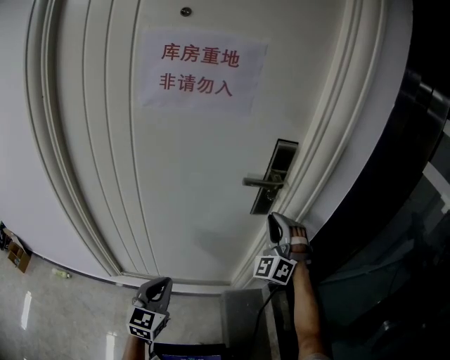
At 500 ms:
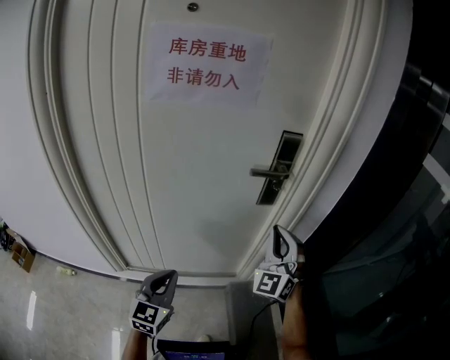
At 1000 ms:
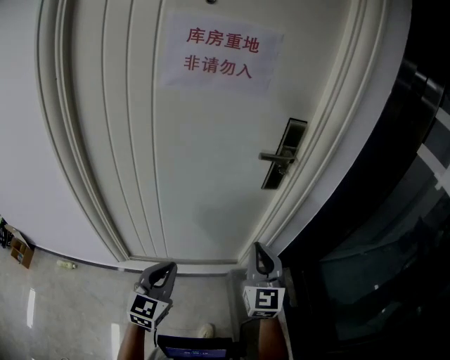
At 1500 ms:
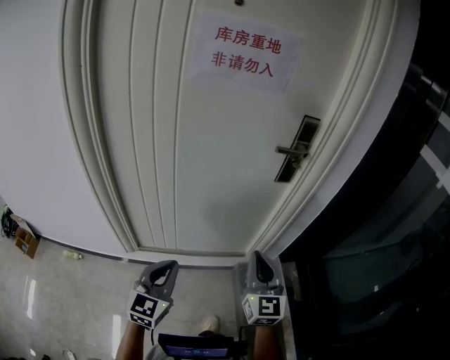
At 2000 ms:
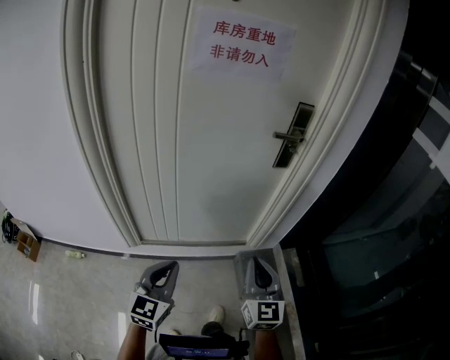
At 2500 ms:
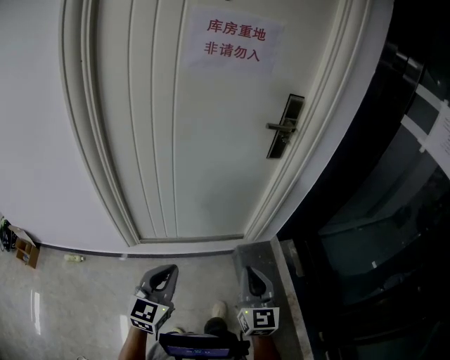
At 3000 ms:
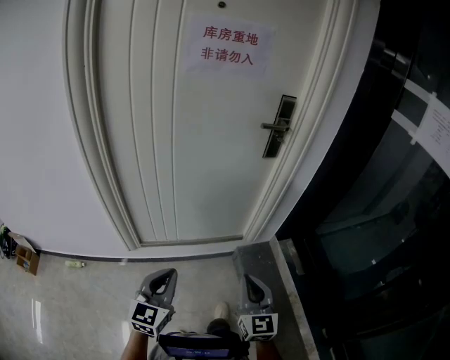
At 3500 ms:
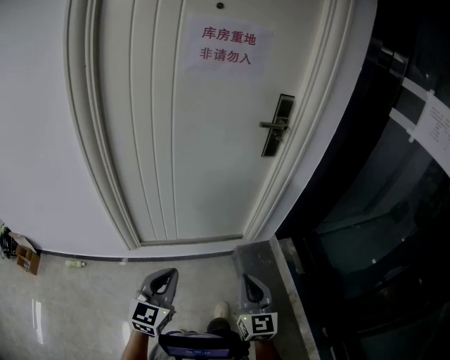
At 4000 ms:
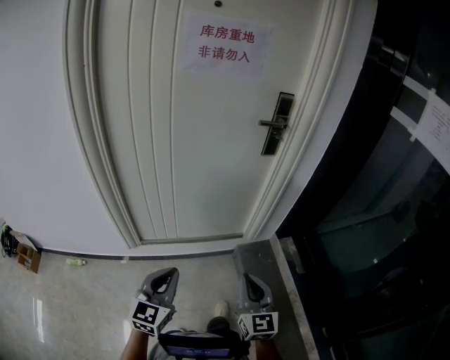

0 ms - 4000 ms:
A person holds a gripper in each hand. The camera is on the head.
0 ms - 2000 ms: The right gripper heads backward, covering roughly 35 cm, and rolls clockwise, seen from behind, by approximately 70 degrees. Meanwhile the left gripper heads backward and to the left, covering some 20 cm.
2000 ms - 4000 ms: The right gripper shifts about 15 cm backward and downward. Meanwhile the left gripper heads backward, covering approximately 10 cm.

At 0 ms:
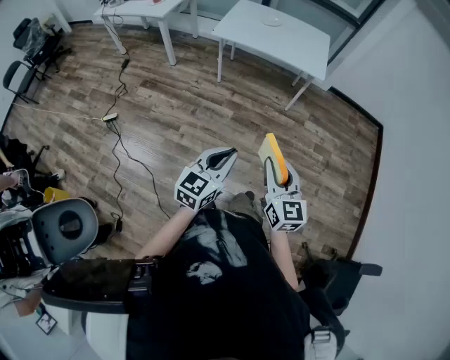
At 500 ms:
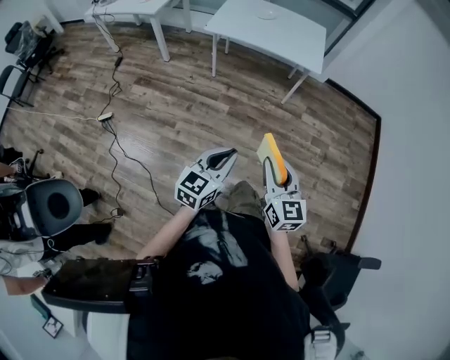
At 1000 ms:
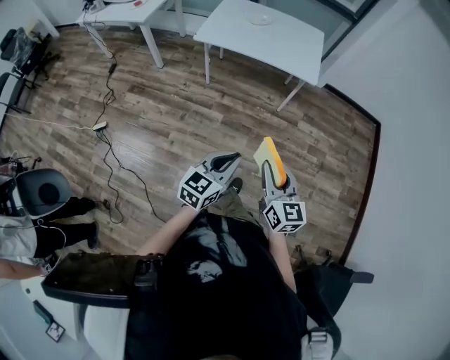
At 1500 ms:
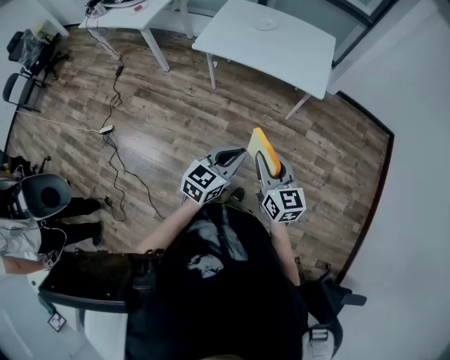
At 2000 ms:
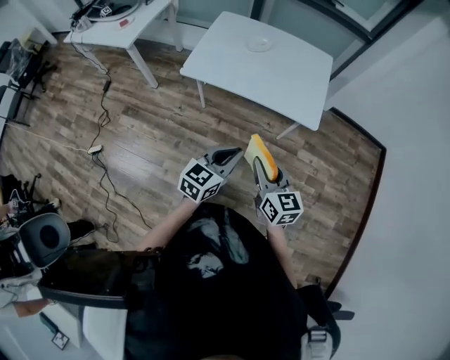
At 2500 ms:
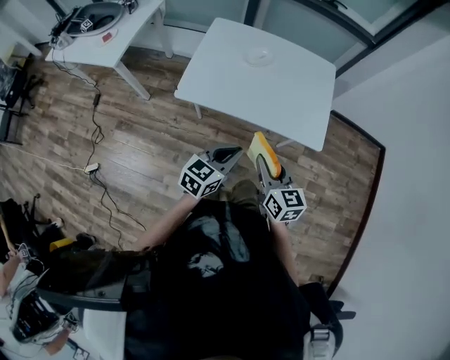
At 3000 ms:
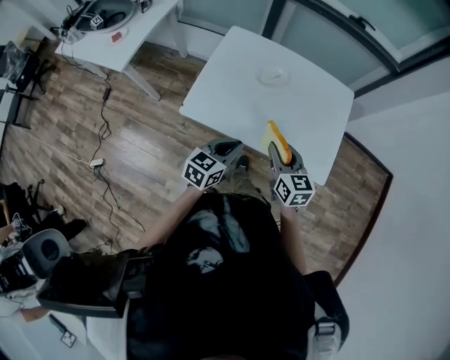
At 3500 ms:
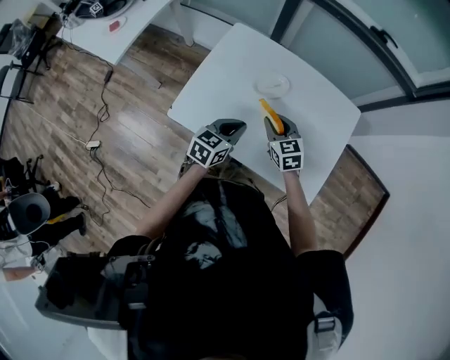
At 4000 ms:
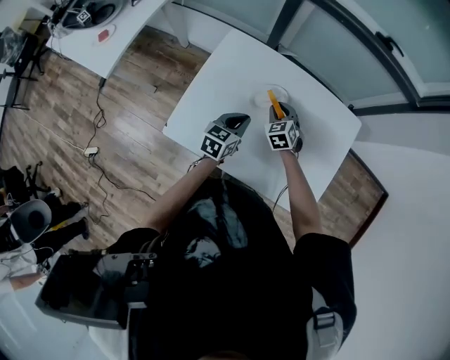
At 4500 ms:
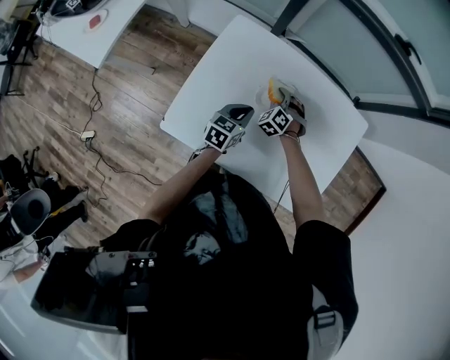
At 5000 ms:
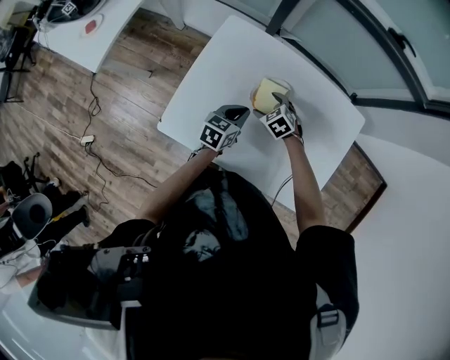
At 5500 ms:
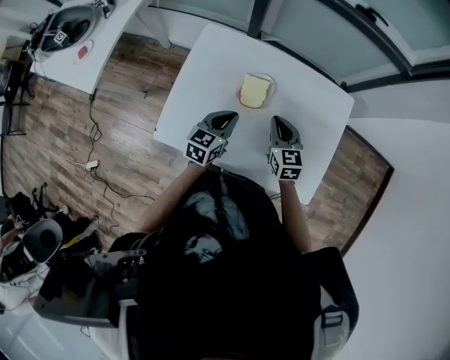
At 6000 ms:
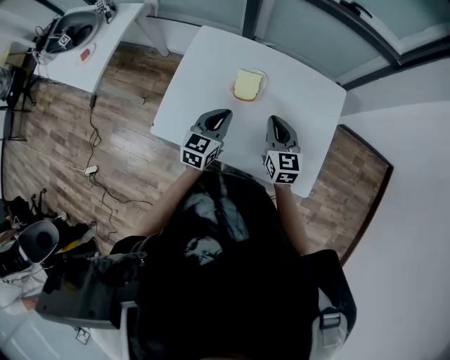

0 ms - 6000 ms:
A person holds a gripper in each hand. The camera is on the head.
0 ms - 2000 ms: The pair of grippers is taken forward, roughly 40 cm.
2000 ms - 4000 ms: The pair of grippers is taken forward, roughly 60 cm. The left gripper rotates approximately 20 degrees; the right gripper rotates approximately 50 degrees.
4000 ms - 6000 ms: The right gripper travels upward, backward and to the right by some 20 cm, changes its angle by approximately 40 degrees, and opens, then closes once more, while the left gripper goes about 5 cm upward.

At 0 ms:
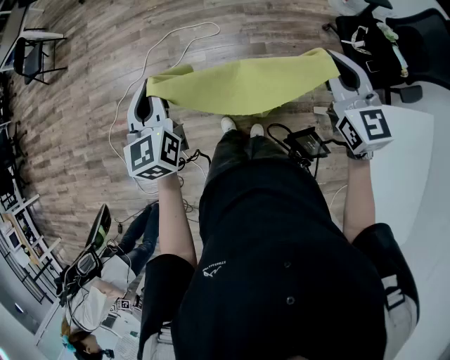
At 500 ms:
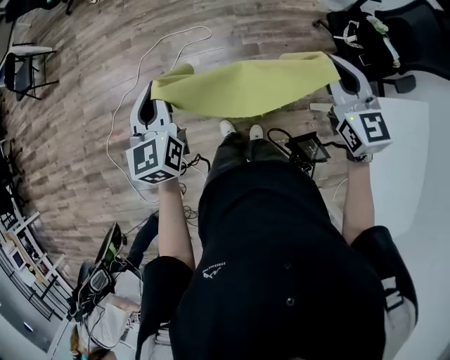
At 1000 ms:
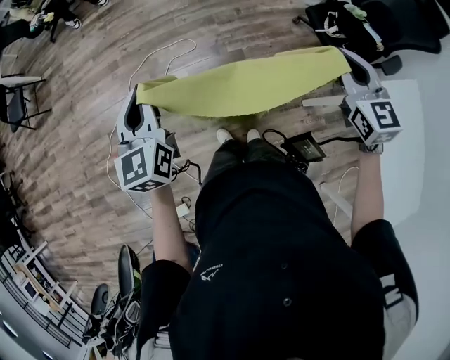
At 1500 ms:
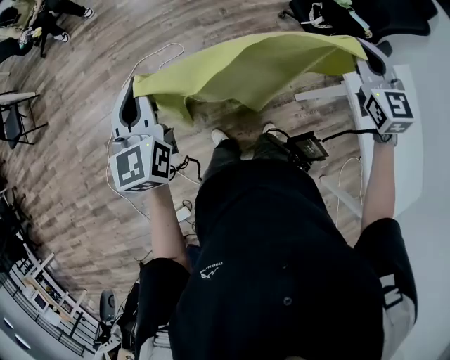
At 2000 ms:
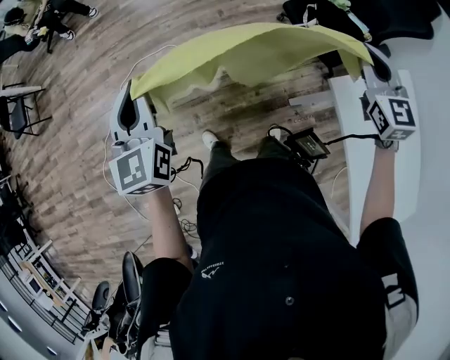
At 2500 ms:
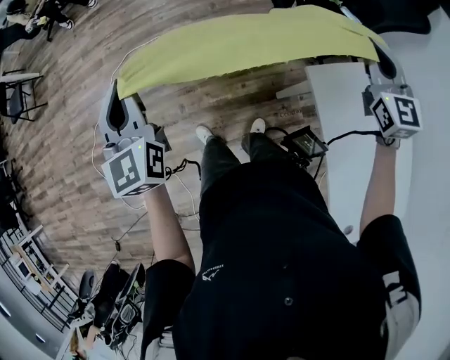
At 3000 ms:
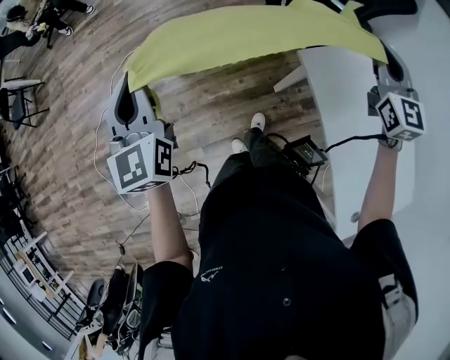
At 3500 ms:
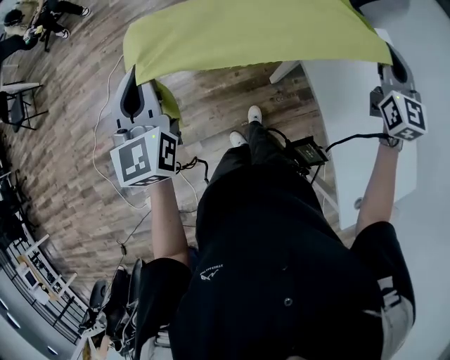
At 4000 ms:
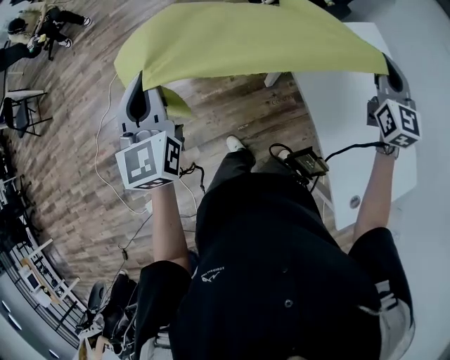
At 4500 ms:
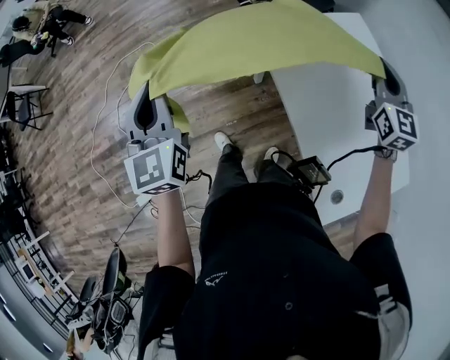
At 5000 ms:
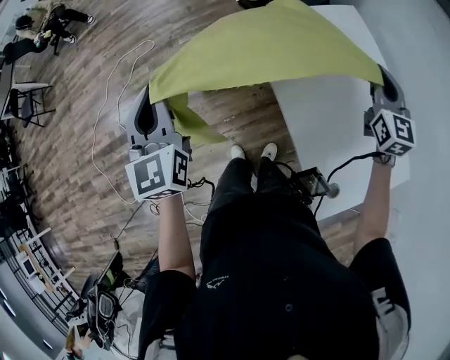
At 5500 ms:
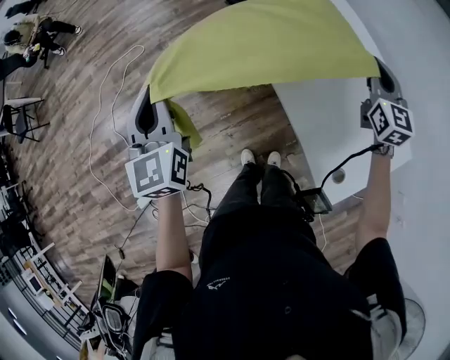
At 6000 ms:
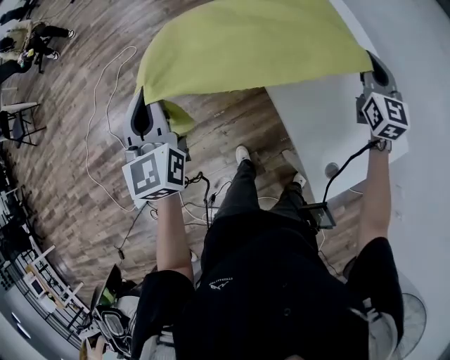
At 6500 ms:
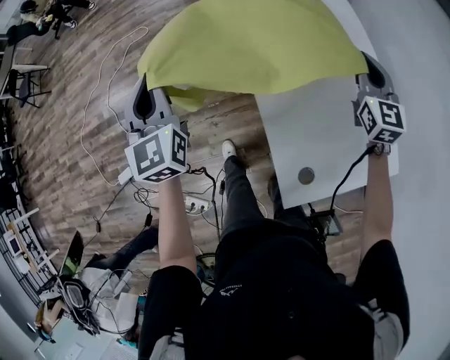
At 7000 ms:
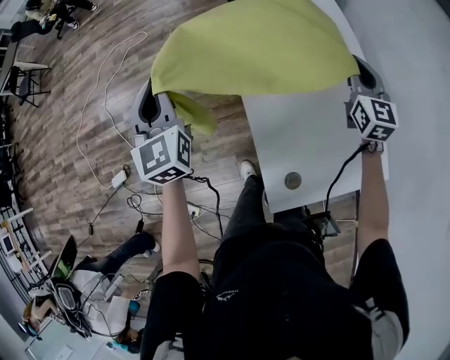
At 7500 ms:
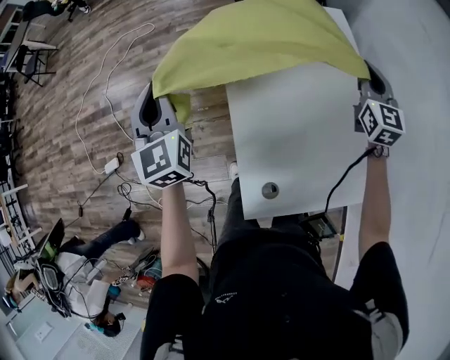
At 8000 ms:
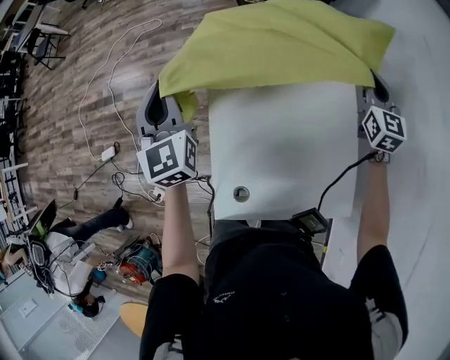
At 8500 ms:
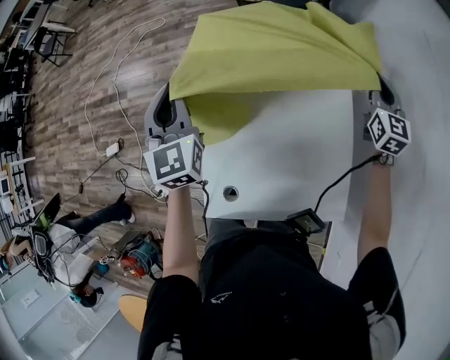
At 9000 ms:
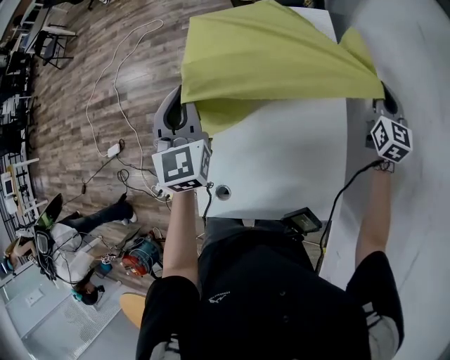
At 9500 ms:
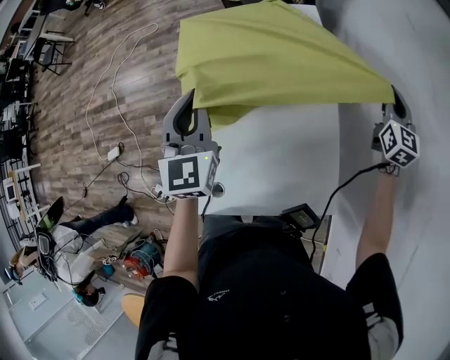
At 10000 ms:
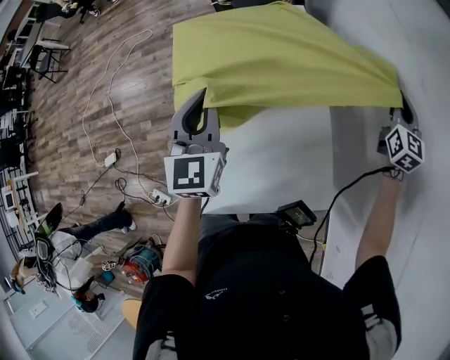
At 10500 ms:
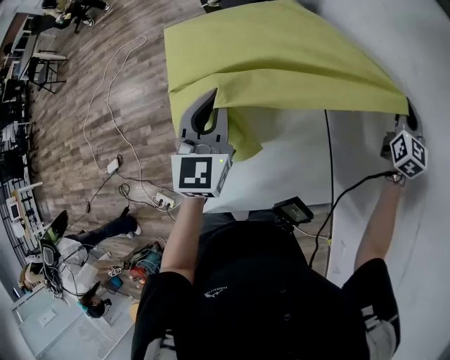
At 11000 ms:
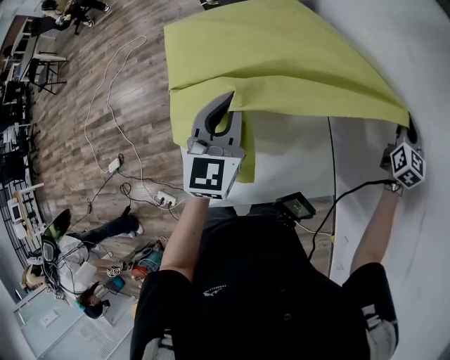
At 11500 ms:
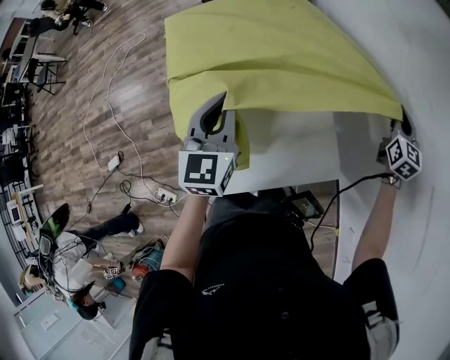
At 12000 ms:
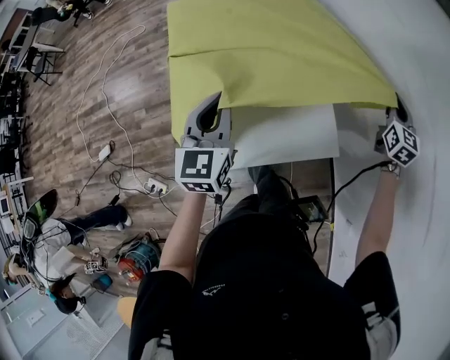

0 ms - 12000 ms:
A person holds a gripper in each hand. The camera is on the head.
0 ms - 2000 ms: The right gripper goes approximately 25 cm to the right, and changes its angle by roughly 20 degrees; the left gripper travels to the right by some 15 cm.
2000 ms - 4000 ms: The two grippers go about 35 cm backward and to the right.
4000 ms - 6000 ms: The two grippers go some 25 cm to the right and backward.
6000 ms - 8000 ms: The right gripper moves to the right and forward, approximately 25 cm, and turns by roughly 20 degrees; the left gripper travels to the right by some 25 cm, and turns by some 30 degrees.
8000 ms - 10000 ms: The left gripper shifts approximately 25 cm to the right. The right gripper goes some 25 cm to the right and backward.
10000 ms - 12000 ms: Both grippers travel together backward, approximately 20 cm.

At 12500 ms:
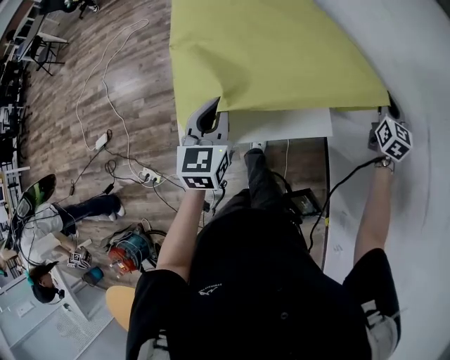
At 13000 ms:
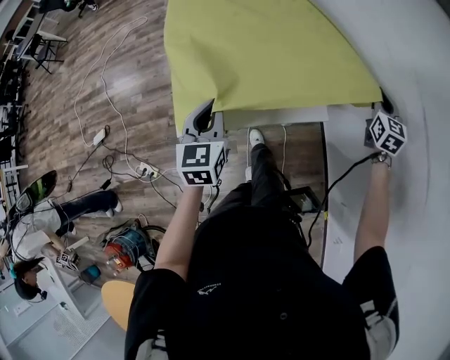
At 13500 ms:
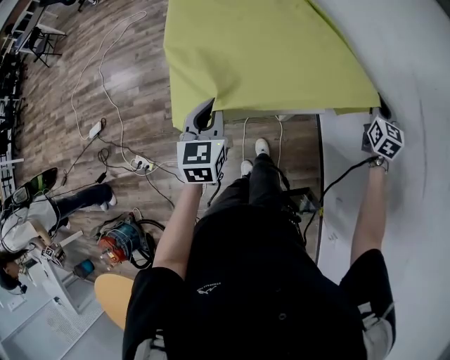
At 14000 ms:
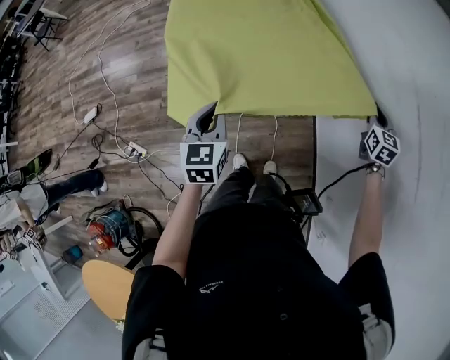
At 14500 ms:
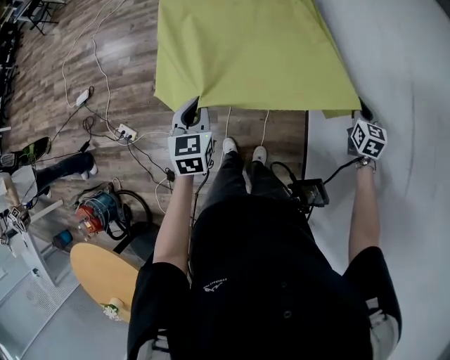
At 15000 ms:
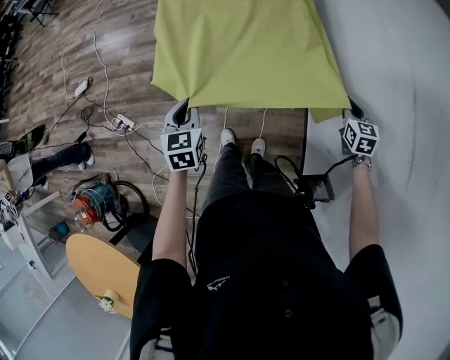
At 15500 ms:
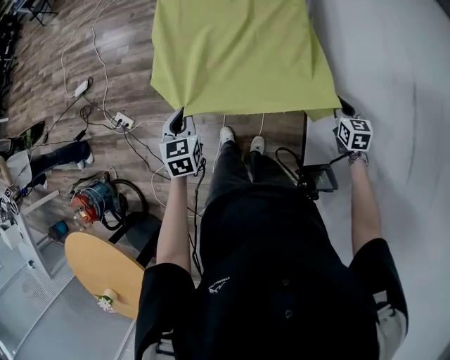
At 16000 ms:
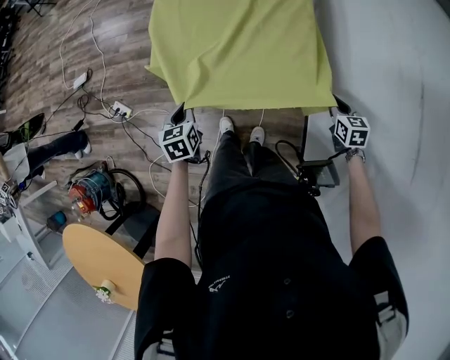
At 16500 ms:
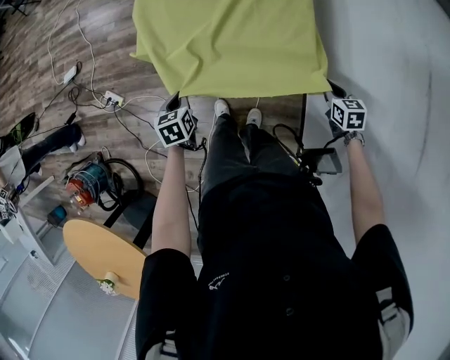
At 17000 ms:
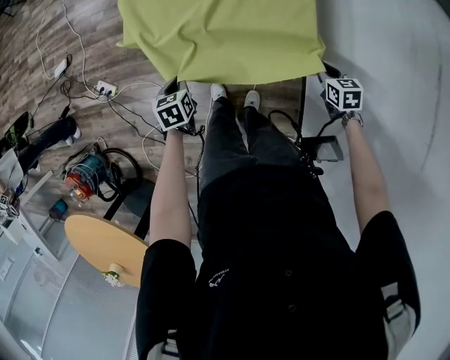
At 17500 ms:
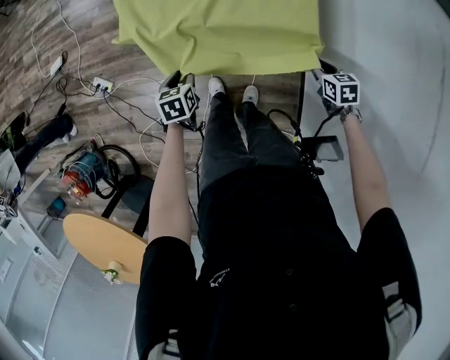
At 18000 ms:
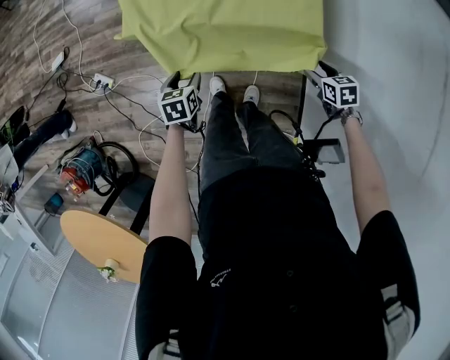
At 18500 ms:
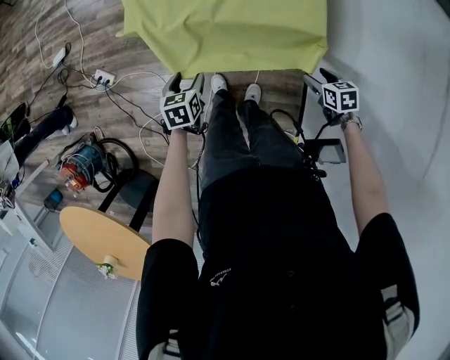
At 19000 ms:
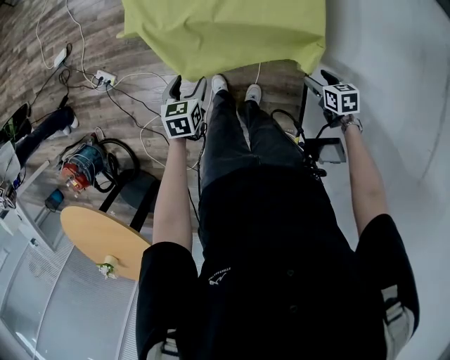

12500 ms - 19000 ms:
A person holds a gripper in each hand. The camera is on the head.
12500 ms - 14500 ms: Both grippers move backward and downward, roughly 15 cm. The right gripper rotates some 20 degrees.
14500 ms - 17000 ms: The left gripper heads downward, covering about 25 cm, and changes its angle by some 30 degrees. The right gripper travels downward and to the left by approximately 20 cm, and changes its angle by about 30 degrees.
17000 ms - 19000 ms: The right gripper moves downward, some 5 cm, and opens its fingers. Meanwhile the left gripper opens up.
